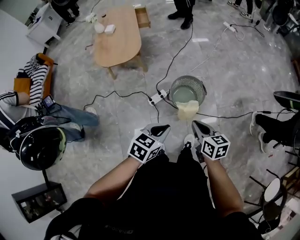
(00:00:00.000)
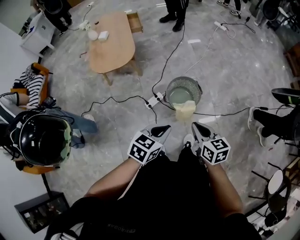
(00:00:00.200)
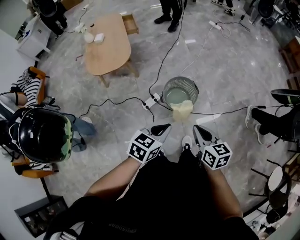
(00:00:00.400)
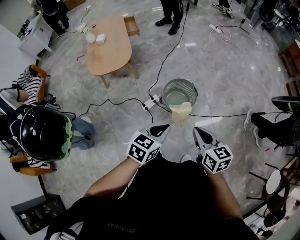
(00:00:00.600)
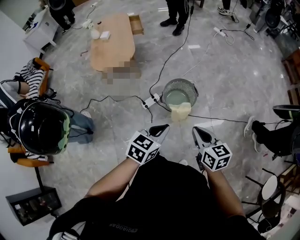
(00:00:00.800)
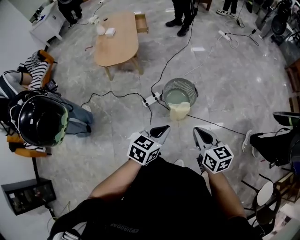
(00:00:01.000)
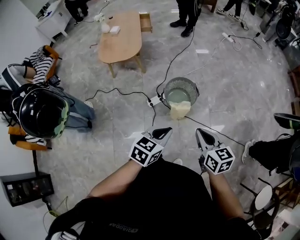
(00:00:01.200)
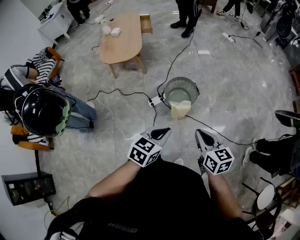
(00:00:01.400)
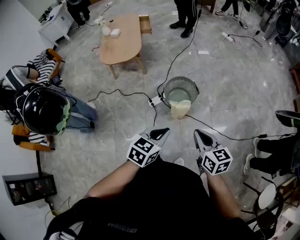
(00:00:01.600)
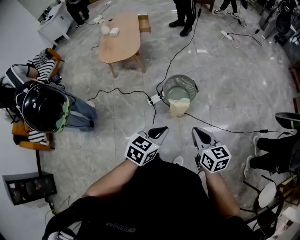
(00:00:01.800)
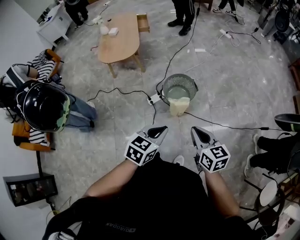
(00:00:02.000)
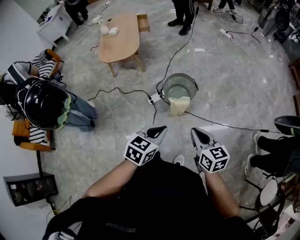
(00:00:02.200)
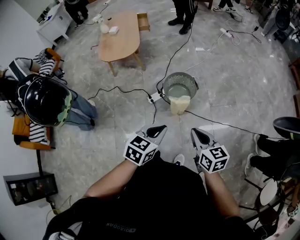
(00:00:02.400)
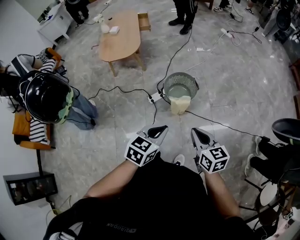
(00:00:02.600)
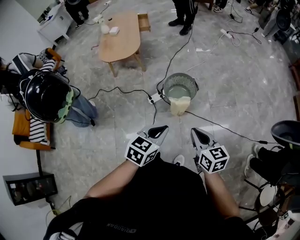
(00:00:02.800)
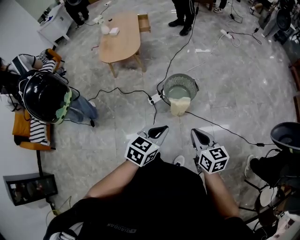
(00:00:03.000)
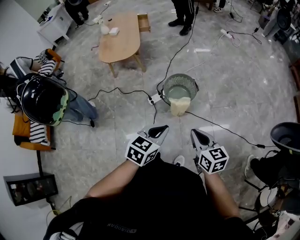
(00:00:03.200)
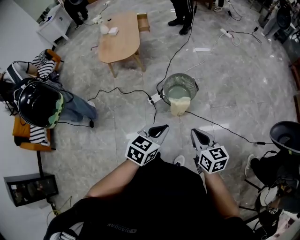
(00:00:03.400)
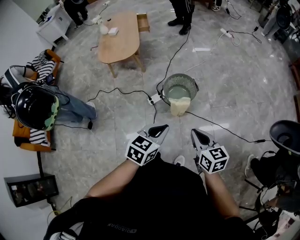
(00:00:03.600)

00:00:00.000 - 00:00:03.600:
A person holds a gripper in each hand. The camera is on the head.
00:00:00.000 - 00:00:01.800: The right gripper is displaced backward, to the right and upward by about 20 cm. The left gripper travels to the right, backward and upward by approximately 15 cm.
00:00:01.800 - 00:00:03.600: The grippers stay close to where they were, moving slightly.

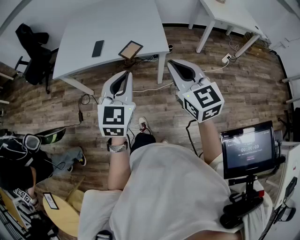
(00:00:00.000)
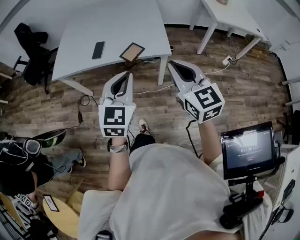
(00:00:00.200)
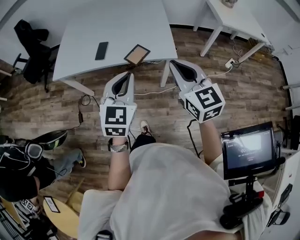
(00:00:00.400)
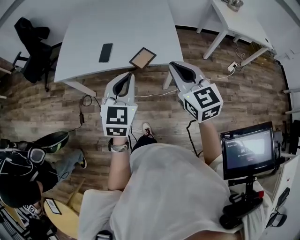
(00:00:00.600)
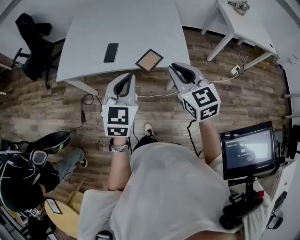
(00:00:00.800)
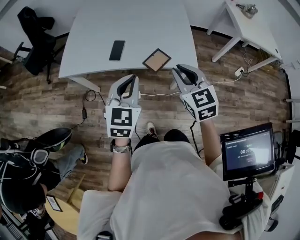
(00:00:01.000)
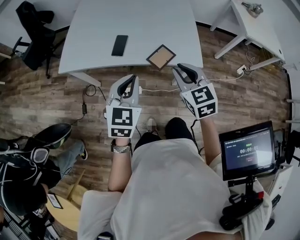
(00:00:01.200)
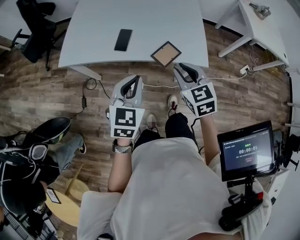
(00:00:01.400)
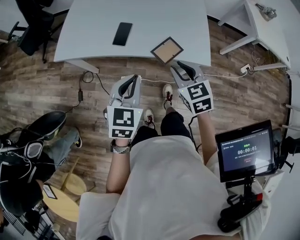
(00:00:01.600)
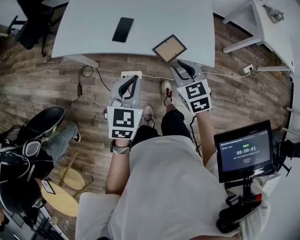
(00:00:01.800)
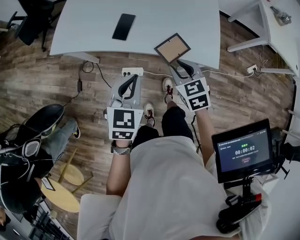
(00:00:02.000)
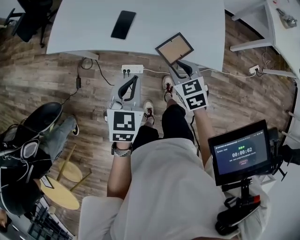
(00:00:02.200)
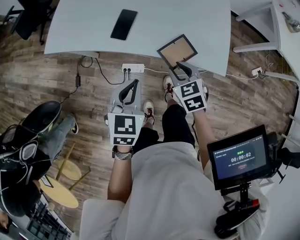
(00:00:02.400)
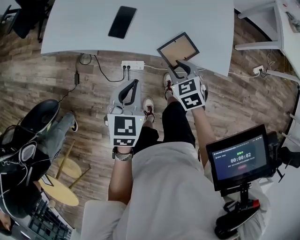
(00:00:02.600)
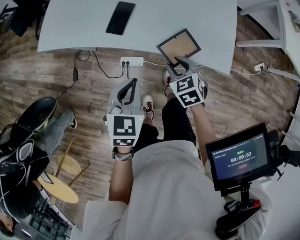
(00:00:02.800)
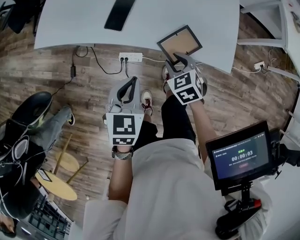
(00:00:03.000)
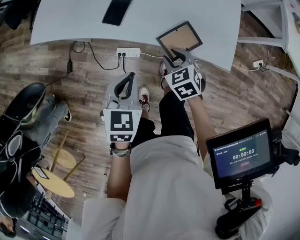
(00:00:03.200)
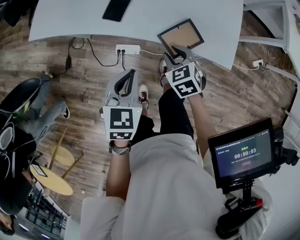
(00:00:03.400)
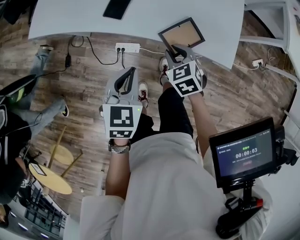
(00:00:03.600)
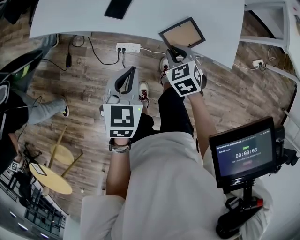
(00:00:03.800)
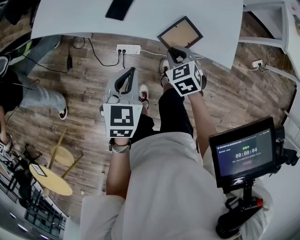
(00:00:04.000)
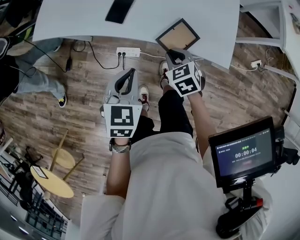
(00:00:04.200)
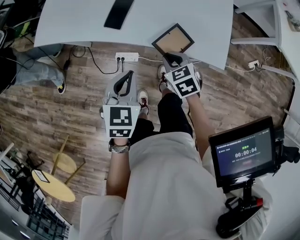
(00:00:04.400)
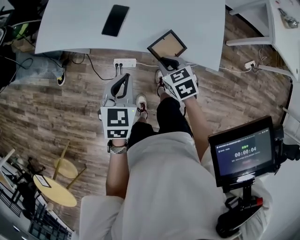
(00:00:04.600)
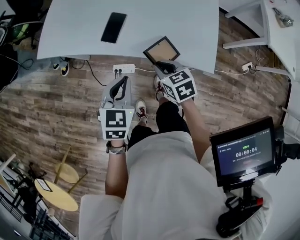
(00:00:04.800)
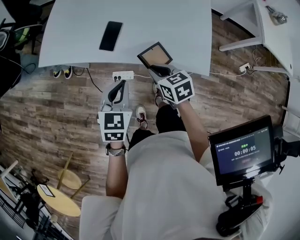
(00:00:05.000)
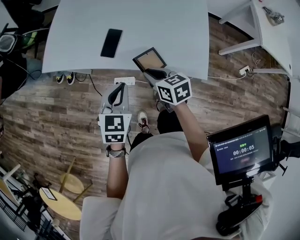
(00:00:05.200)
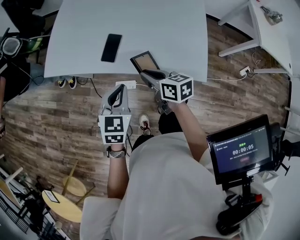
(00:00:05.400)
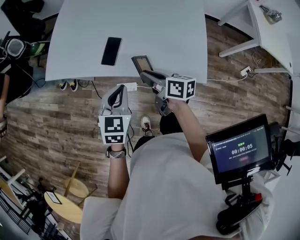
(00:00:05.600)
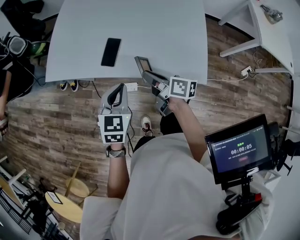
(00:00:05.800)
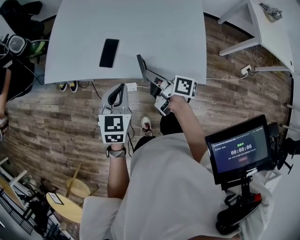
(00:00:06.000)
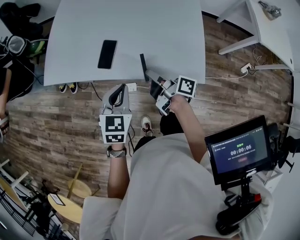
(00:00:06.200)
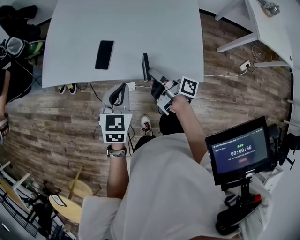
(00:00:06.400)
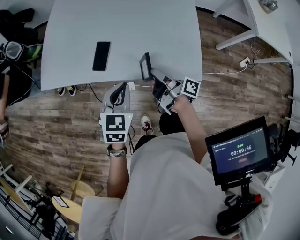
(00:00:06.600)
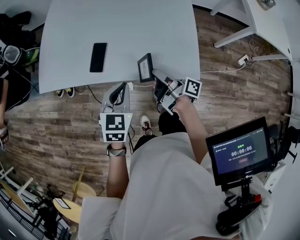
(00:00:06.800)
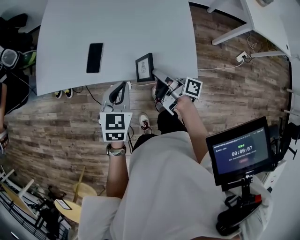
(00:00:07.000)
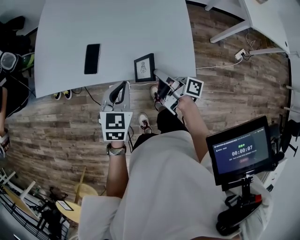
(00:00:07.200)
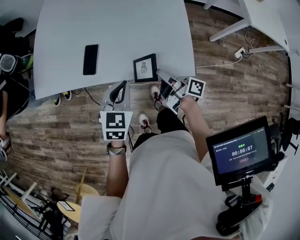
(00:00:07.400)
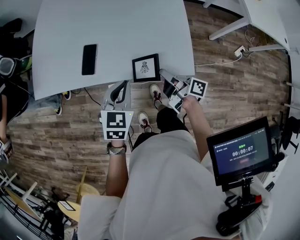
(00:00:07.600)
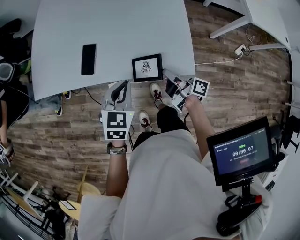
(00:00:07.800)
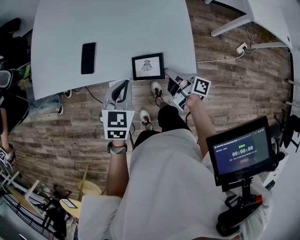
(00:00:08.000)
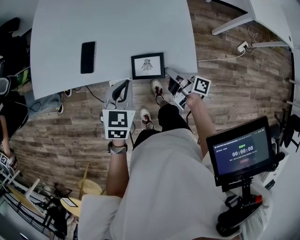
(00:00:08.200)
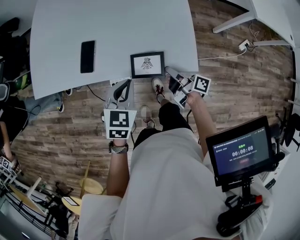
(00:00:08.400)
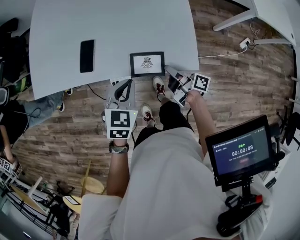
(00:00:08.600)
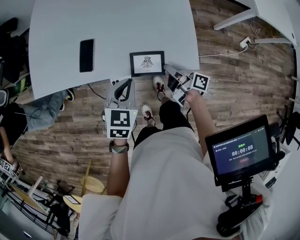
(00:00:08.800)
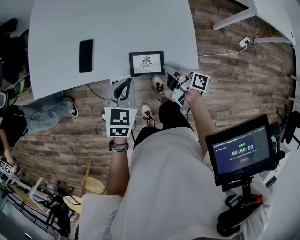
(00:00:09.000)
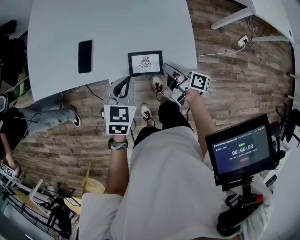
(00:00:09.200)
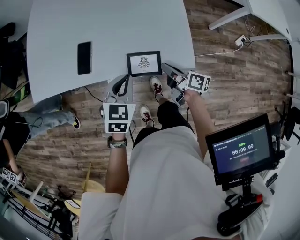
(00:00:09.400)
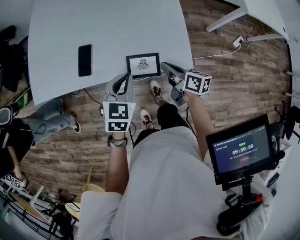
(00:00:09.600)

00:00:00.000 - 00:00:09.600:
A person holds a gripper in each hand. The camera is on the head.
00:00:00.000 - 00:00:01.600: The left gripper goes about 30 cm forward, to the left and downward. The right gripper moves forward, downward and to the left, roughly 35 cm, changes its angle by approximately 30 degrees, and opens its fingers.
00:00:01.600 - 00:00:03.200: Both grippers move downward, about 20 cm. The right gripper turns by approximately 20 degrees.
00:00:03.200 - 00:00:04.800: The left gripper ends up about 5 cm from where it was, while the right gripper travels upward by about 5 cm, swivels roughly 20 degrees, and closes.
00:00:04.800 - 00:00:06.400: The left gripper ends up approximately 5 cm from where it was, while the right gripper shifts some 5 cm upward, and rolls clockwise, seen from behind, by approximately 70 degrees.
00:00:06.400 - 00:00:08.000: The left gripper moves to the right, about 5 cm; the right gripper moves to the right and downward, approximately 15 cm.
00:00:08.000 - 00:00:09.600: The right gripper rotates approximately 30 degrees.

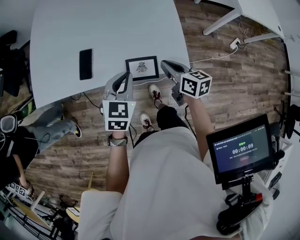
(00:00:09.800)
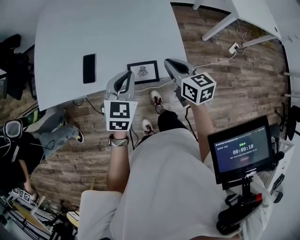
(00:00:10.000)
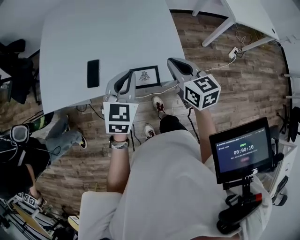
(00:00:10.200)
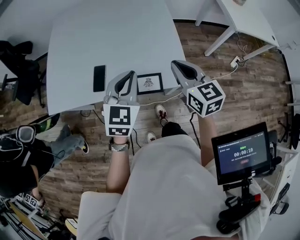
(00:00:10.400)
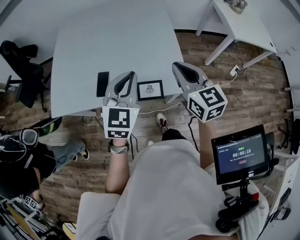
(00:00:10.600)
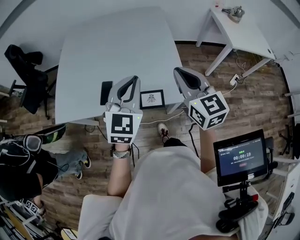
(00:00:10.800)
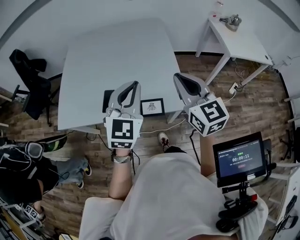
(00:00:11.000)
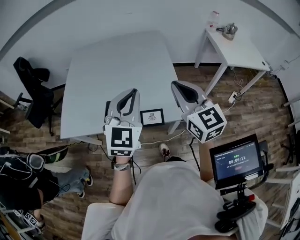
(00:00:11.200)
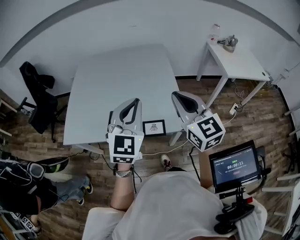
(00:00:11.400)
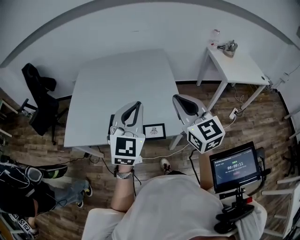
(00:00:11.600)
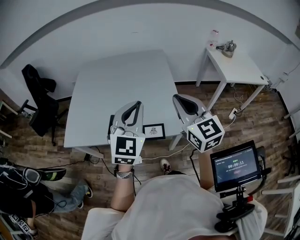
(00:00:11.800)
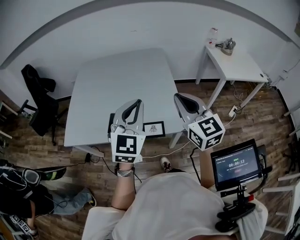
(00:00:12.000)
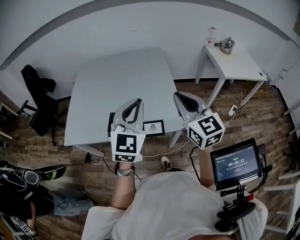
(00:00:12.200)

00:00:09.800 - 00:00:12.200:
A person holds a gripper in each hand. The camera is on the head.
00:00:09.800 - 00:00:11.000: The grippers both shift upward by some 25 cm. The left gripper changes its angle by about 30 degrees. The right gripper changes its angle by roughly 50 degrees.
00:00:11.000 - 00:00:12.200: The grippers make only small movements.

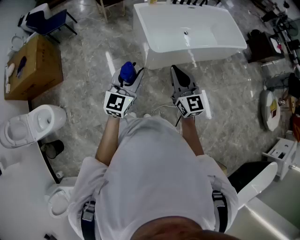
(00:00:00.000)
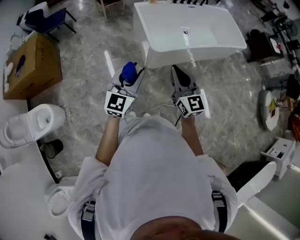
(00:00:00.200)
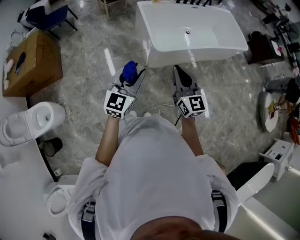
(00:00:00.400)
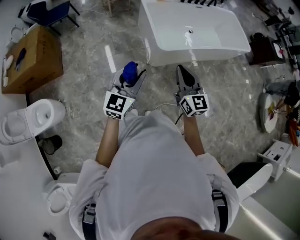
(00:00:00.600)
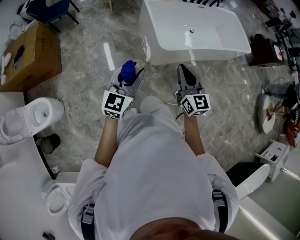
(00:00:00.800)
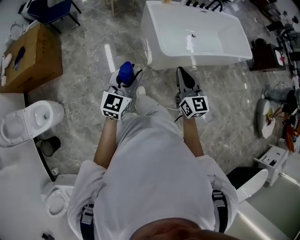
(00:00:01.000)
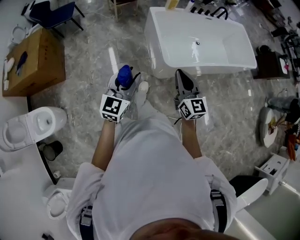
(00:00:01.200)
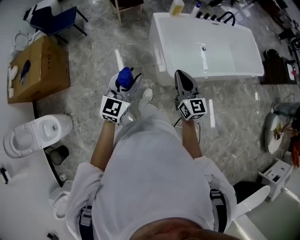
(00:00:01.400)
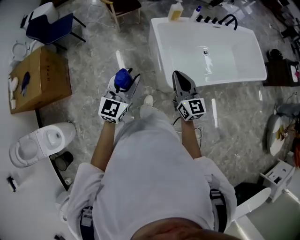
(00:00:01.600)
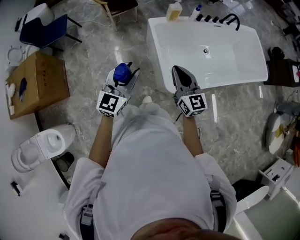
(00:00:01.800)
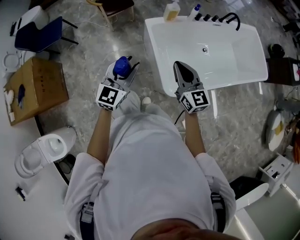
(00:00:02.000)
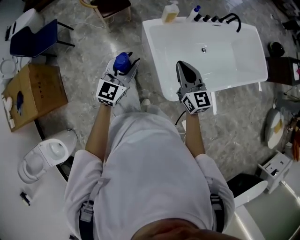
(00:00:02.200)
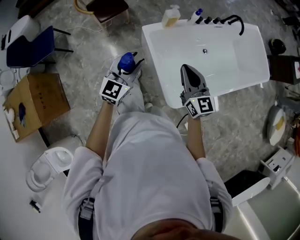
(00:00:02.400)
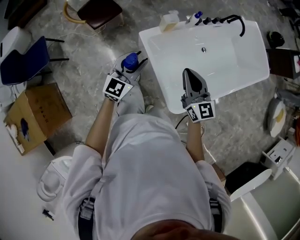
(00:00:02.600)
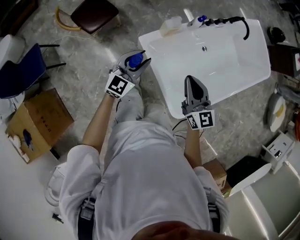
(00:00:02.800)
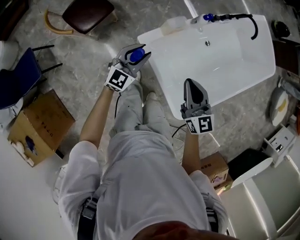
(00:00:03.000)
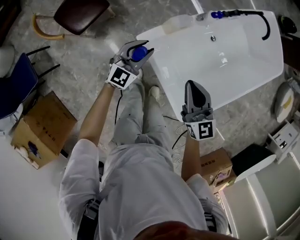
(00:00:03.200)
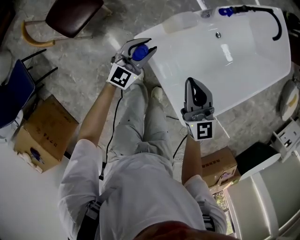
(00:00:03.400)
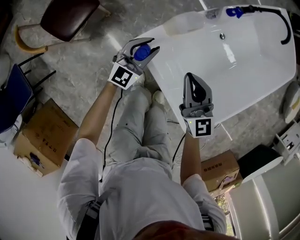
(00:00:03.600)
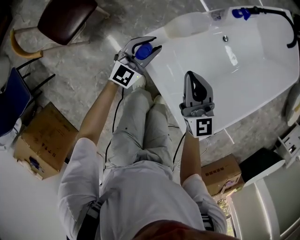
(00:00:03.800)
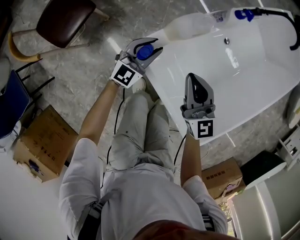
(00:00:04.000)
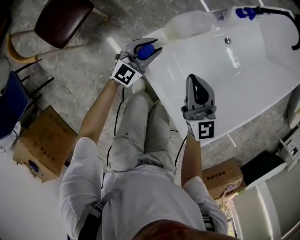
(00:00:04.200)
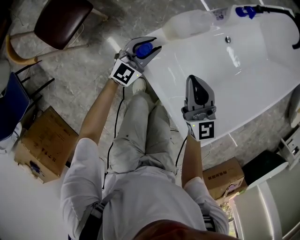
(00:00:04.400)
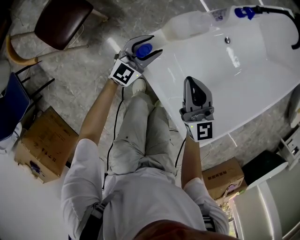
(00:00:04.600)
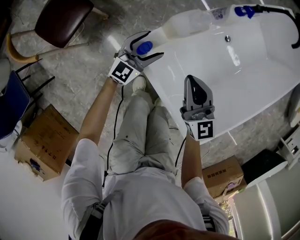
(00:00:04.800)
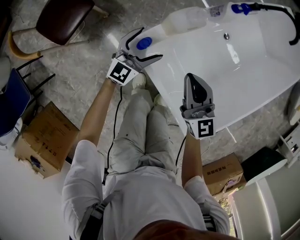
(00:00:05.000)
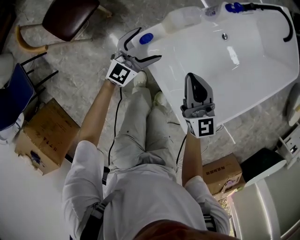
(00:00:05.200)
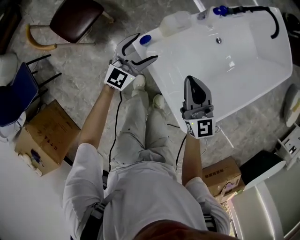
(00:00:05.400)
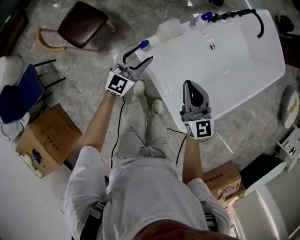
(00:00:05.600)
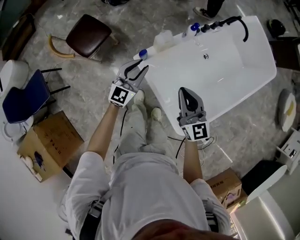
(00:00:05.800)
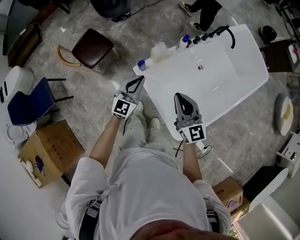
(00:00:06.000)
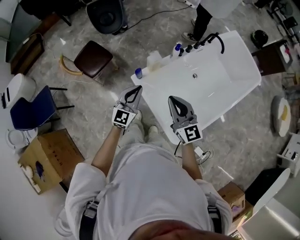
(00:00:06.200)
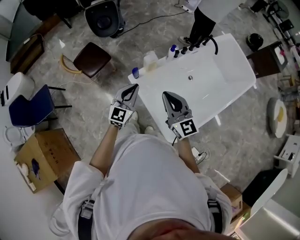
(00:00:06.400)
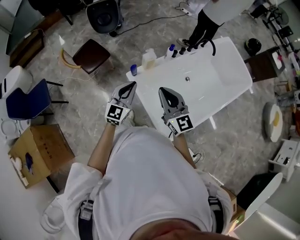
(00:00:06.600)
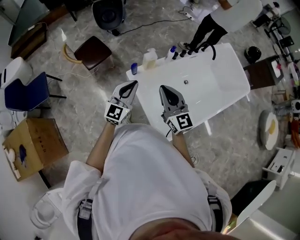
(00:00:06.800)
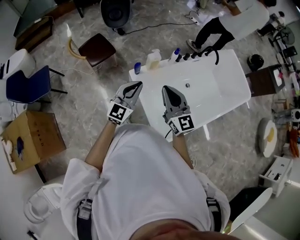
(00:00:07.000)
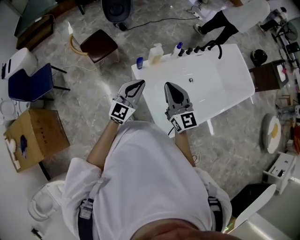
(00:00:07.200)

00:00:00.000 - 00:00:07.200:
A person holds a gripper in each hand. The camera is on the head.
00:00:00.000 - 00:00:01.400: The right gripper goes approximately 25 cm forward, while the left gripper travels forward and to the left by approximately 25 cm.
00:00:01.400 - 00:00:02.800: The two grippers travel together, forward, approximately 60 cm. The left gripper changes its angle by about 30 degrees.
00:00:02.800 - 00:00:04.400: The two grippers go approximately 35 cm downward and forward.
00:00:04.400 - 00:00:05.800: Both grippers travel together upward, approximately 30 cm. The left gripper opens, then closes again.
00:00:05.800 - 00:00:07.200: The grippers both shift upward and backward by some 25 cm.
